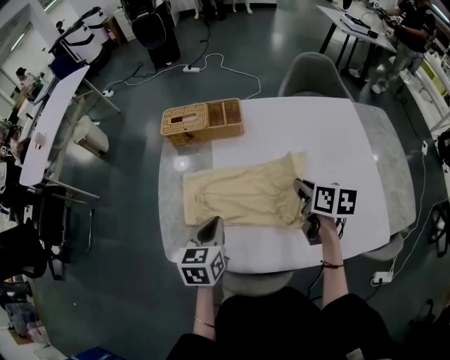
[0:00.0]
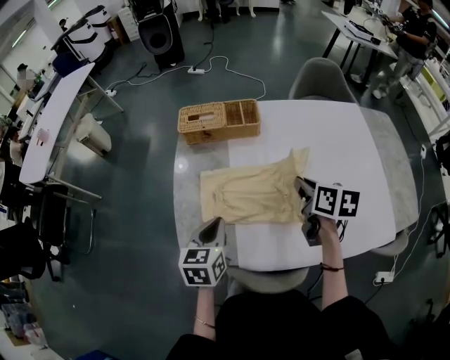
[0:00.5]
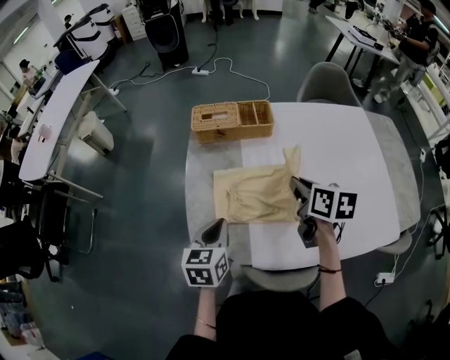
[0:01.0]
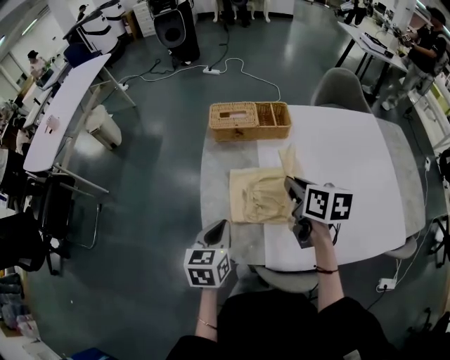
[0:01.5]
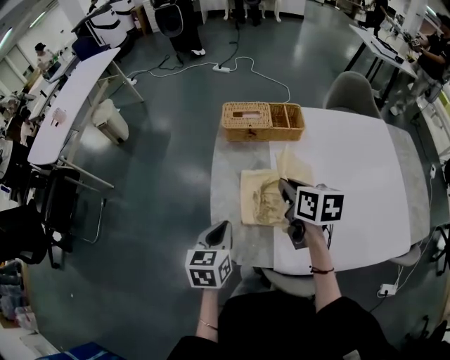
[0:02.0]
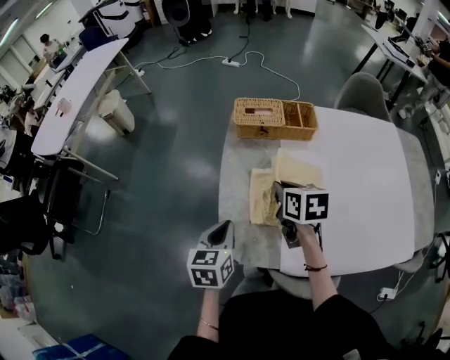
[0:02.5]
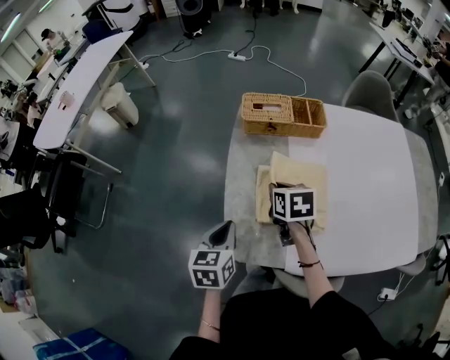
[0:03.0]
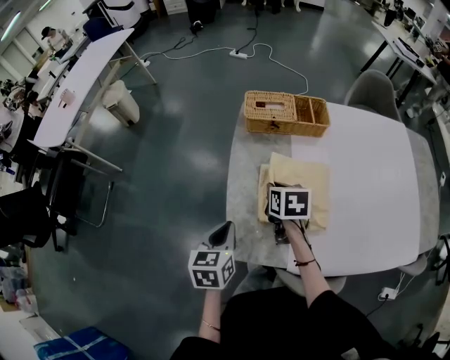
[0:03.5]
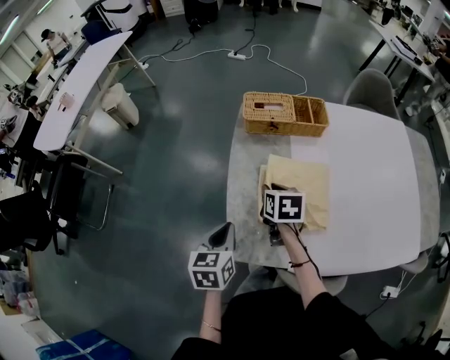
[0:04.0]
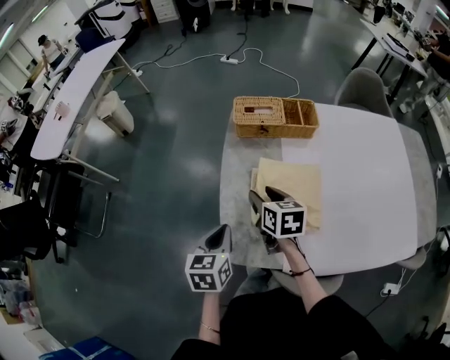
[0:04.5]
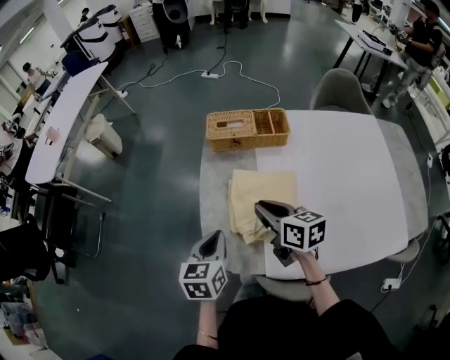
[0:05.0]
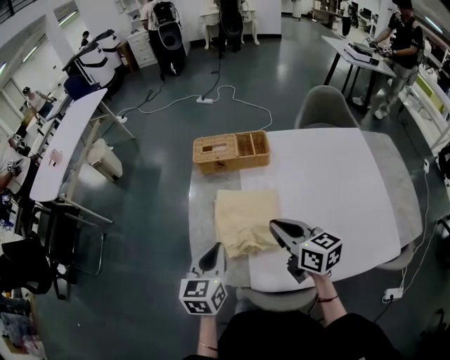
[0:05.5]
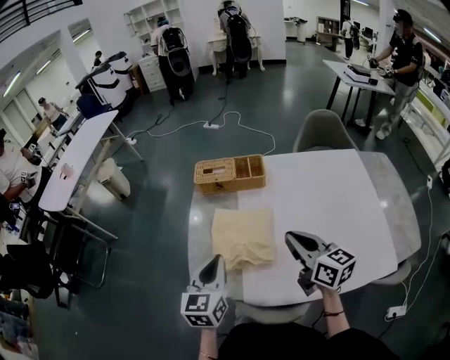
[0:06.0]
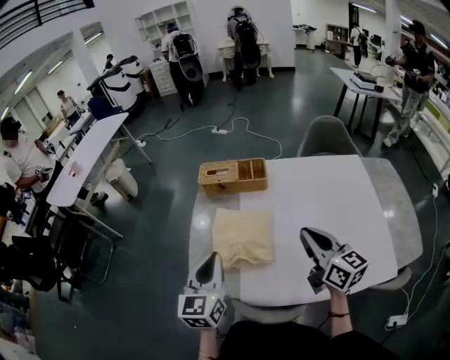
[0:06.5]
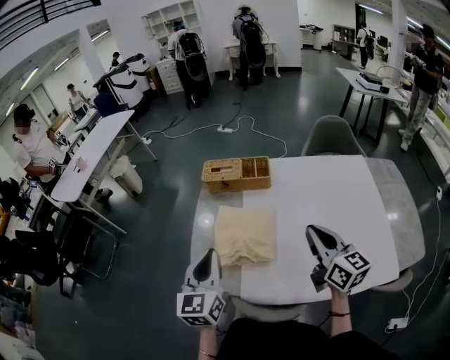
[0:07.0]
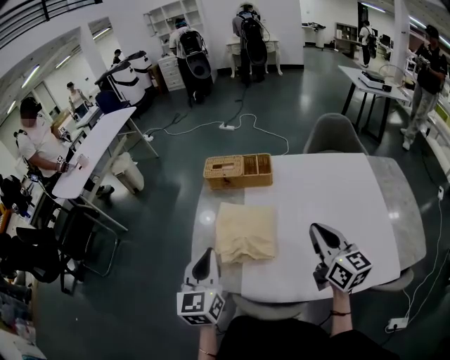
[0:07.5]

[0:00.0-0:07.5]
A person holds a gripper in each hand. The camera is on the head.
0:00.0 to 0:02.0: The two grippers go about 20 cm to the left.
0:02.0 to 0:04.0: The right gripper goes approximately 15 cm downward and to the left. The left gripper ends up approximately 5 cm from where it was.
0:04.0 to 0:05.5: The right gripper shifts roughly 25 cm upward, to the right and backward, tilts its fingers about 30 degrees upward, and opens and closes again. The left gripper moves to the right and upward, about 15 cm.
0:05.5 to 0:07.5: The left gripper heads upward, covering roughly 10 cm, and swivels some 20 degrees; the right gripper goes about 15 cm to the right, upward and backward, and turns by approximately 20 degrees.

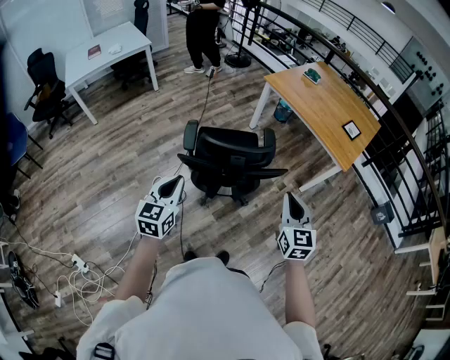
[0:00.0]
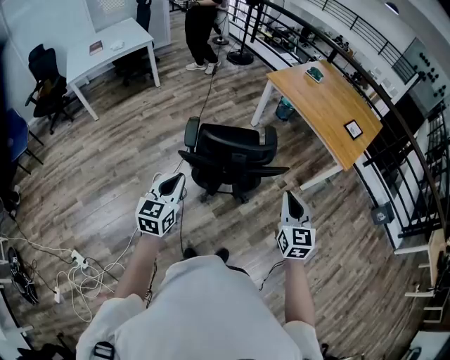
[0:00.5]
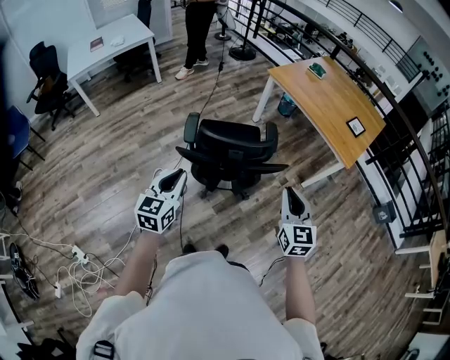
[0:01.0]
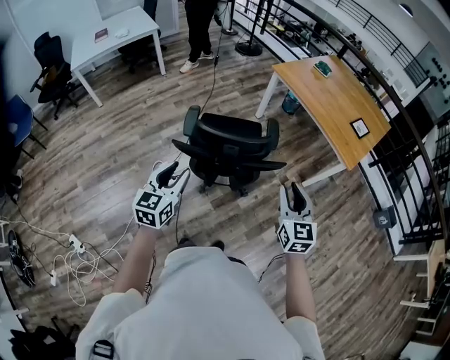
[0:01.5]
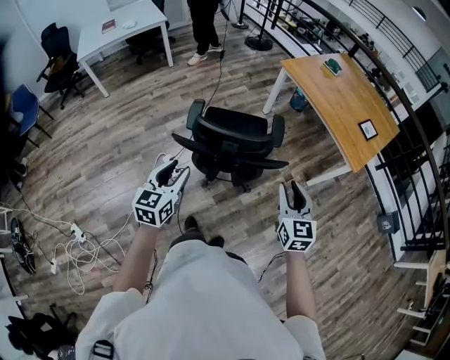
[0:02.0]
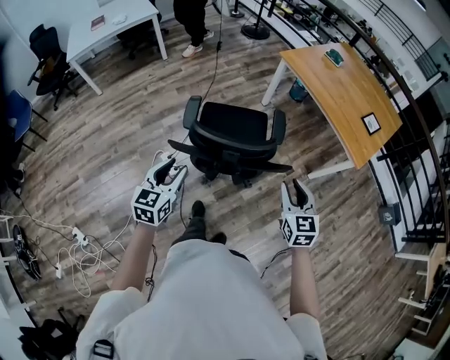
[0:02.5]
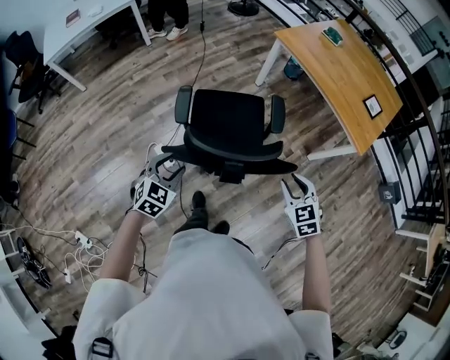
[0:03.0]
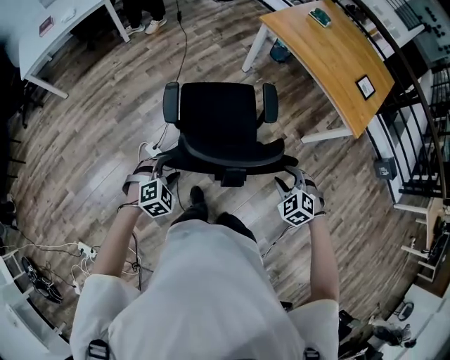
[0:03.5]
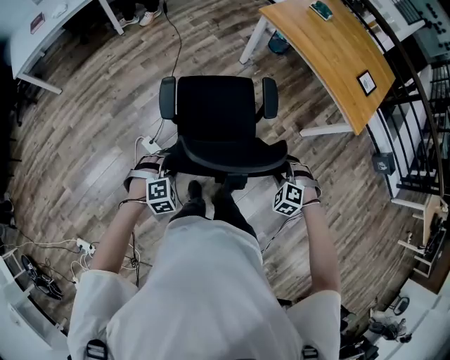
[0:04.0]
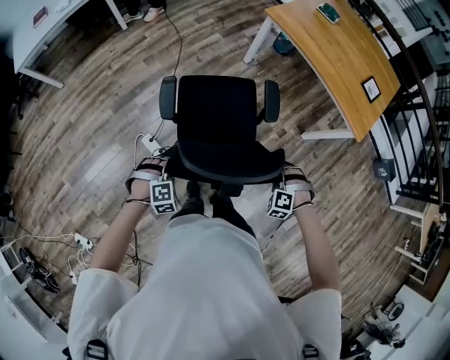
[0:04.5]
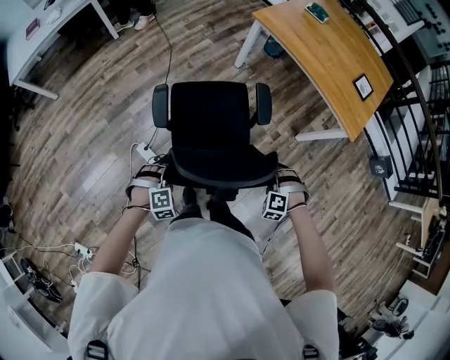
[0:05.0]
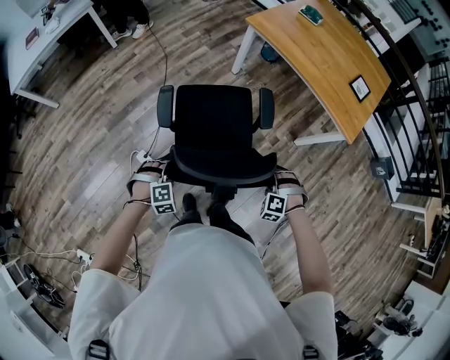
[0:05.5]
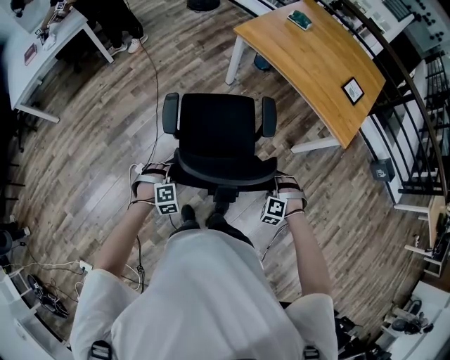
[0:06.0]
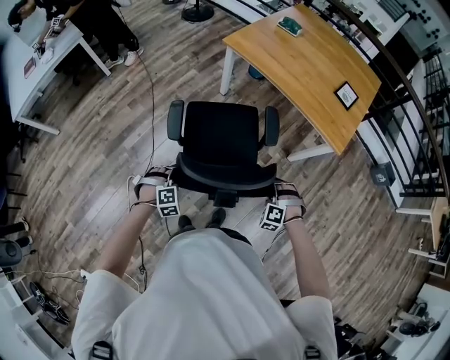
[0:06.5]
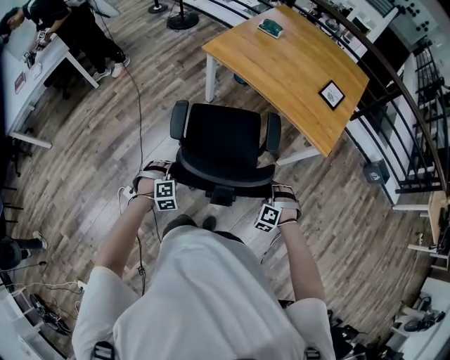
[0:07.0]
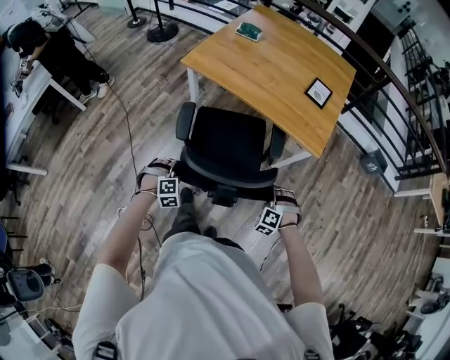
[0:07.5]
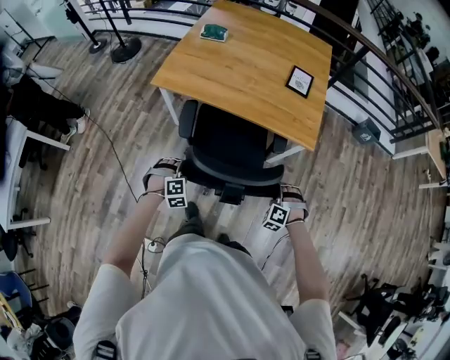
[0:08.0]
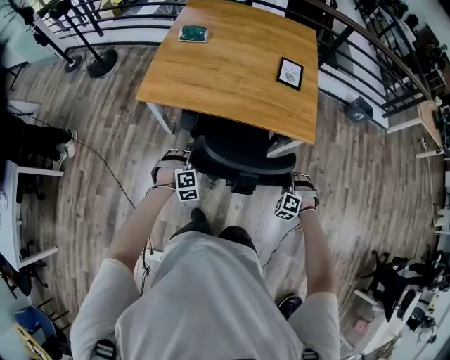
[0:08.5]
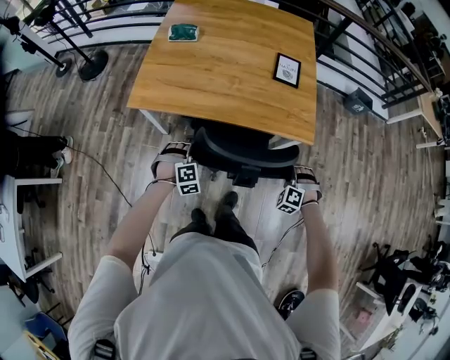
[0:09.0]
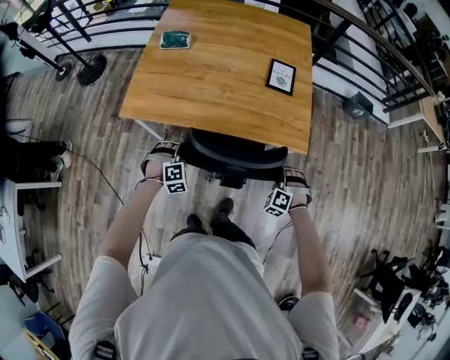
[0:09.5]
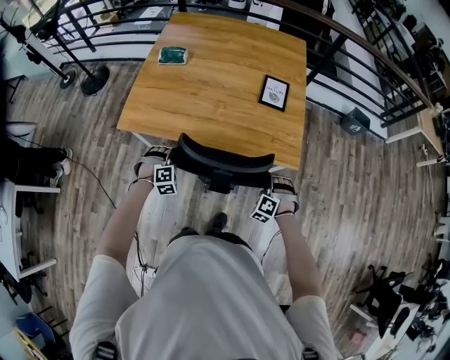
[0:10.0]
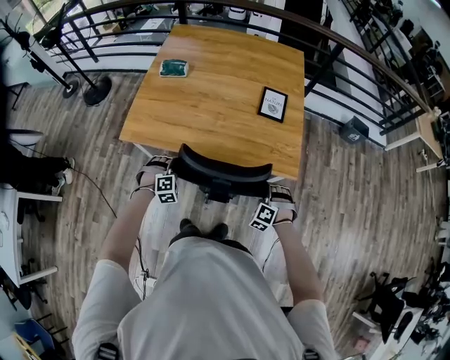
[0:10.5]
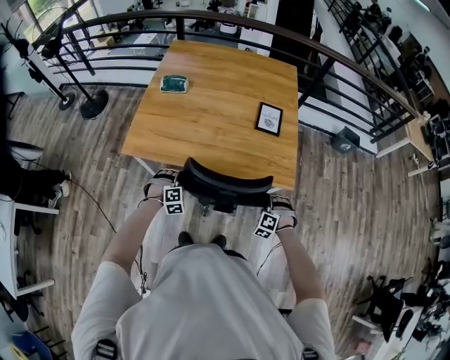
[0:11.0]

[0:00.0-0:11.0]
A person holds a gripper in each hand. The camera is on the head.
0:00.0 to 0:02.0: The left gripper goes roughly 5 cm to the right, and opens its fingers. The right gripper moves forward, about 5 cm, and opens.
0:02.0 to 0:03.5: The two grippers go roughly 20 cm downward and forward. The left gripper tilts its fingers some 40 degrees downward. The right gripper angles its fingers downward, by some 40 degrees.
0:03.5 to 0:05.5: The right gripper travels downward and forward by approximately 10 cm, and changes its angle by approximately 30 degrees. Meanwhile the left gripper travels forward and downward by some 10 cm, rotates roughly 20 degrees, and closes up.
0:05.5 to 0:07.5: The right gripper shifts about 25 cm to the right and forward, and turns by approximately 20 degrees. The left gripper travels forward and to the right by approximately 35 cm.
0:07.5 to 0:09.0: The right gripper is displaced forward by about 20 cm, and turns by approximately 20 degrees. Meanwhile the left gripper moves forward, some 35 cm, and rotates approximately 20 degrees.
0:09.0 to 0:11.0: The two grippers go about 10 cm forward.

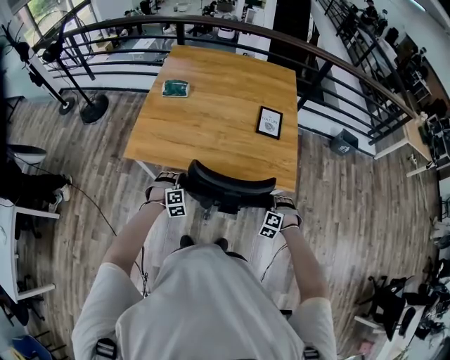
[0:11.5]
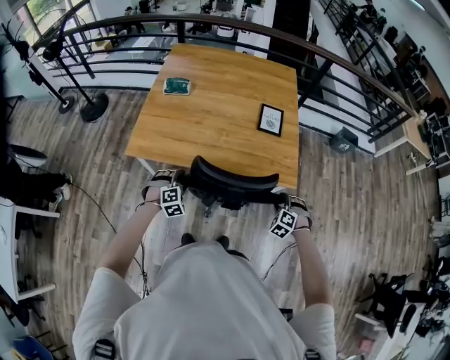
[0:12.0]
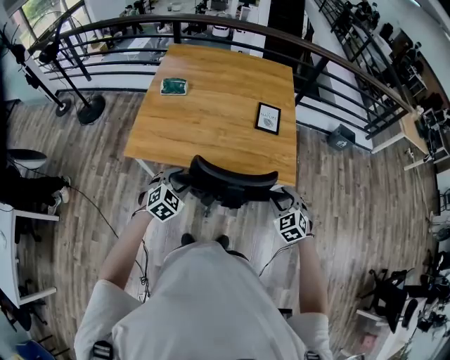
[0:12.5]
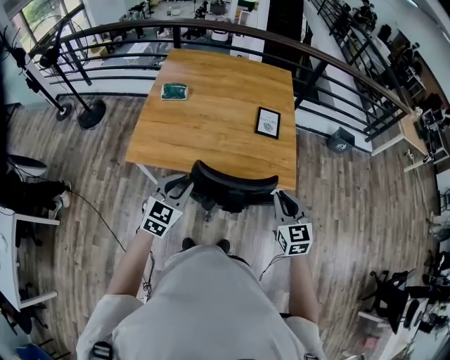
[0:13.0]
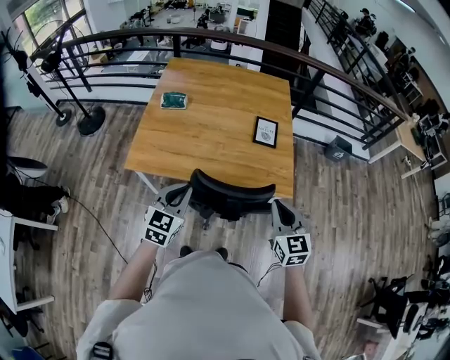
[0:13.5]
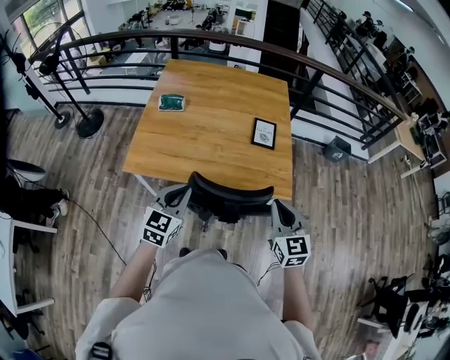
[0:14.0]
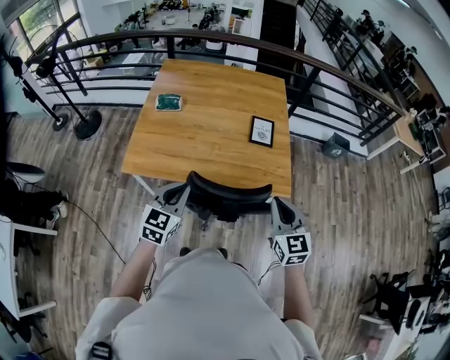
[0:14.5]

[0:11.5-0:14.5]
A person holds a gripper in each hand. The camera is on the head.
0:11.5 to 0:13.0: The two grippers go about 25 cm upward. The right gripper rolls clockwise, seen from behind, by some 60 degrees, and closes up, while the left gripper angles its fingers upward, by roughly 30 degrees, and closes.
0:13.0 to 0:14.5: The grippers move only a little.

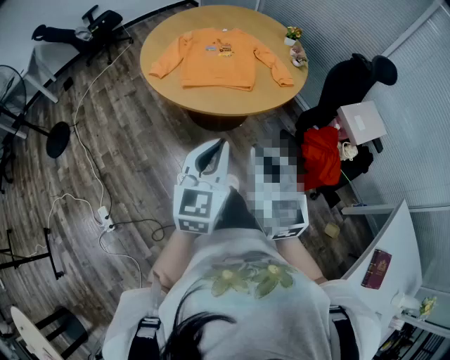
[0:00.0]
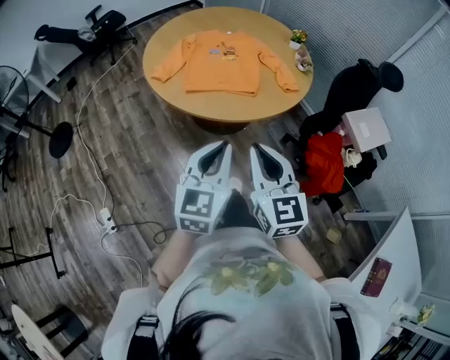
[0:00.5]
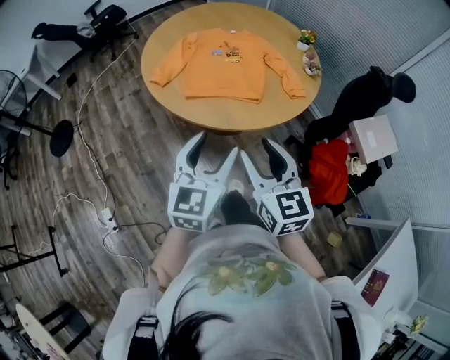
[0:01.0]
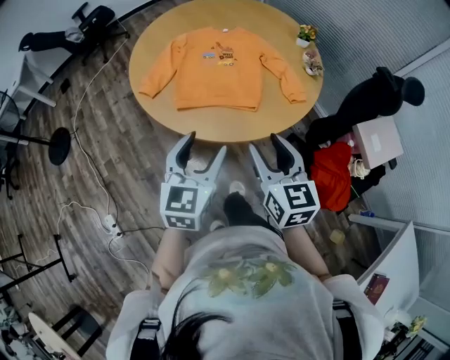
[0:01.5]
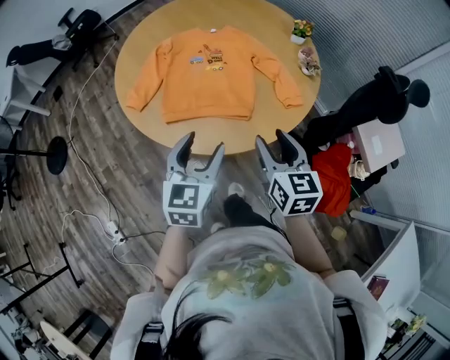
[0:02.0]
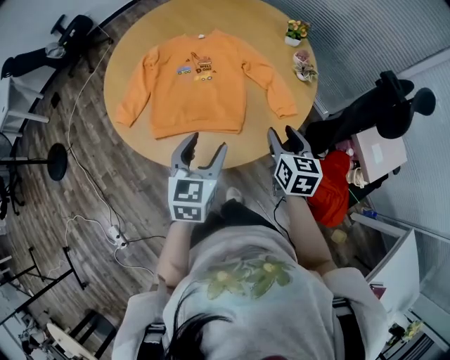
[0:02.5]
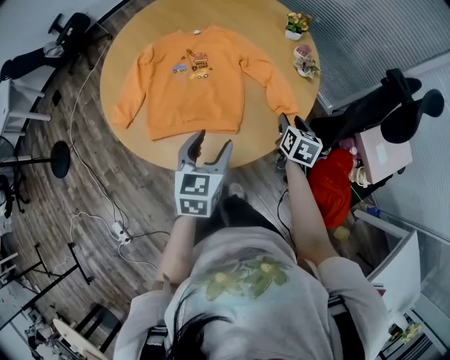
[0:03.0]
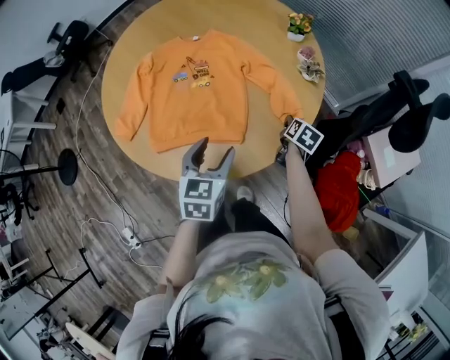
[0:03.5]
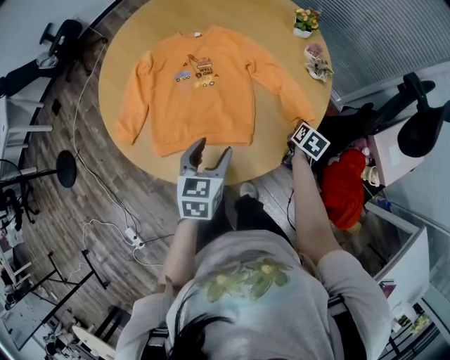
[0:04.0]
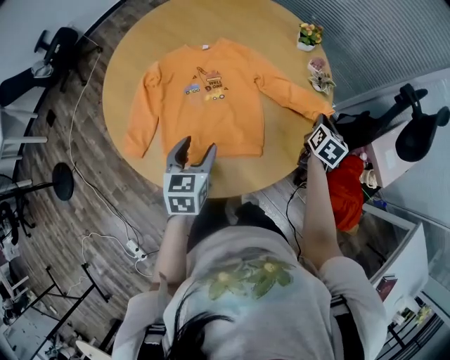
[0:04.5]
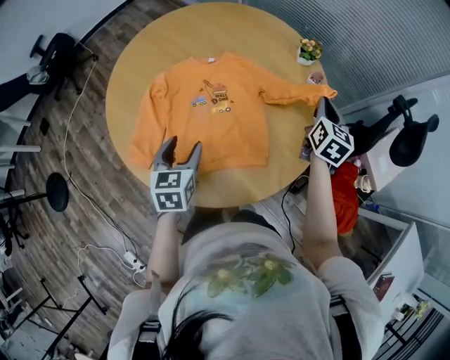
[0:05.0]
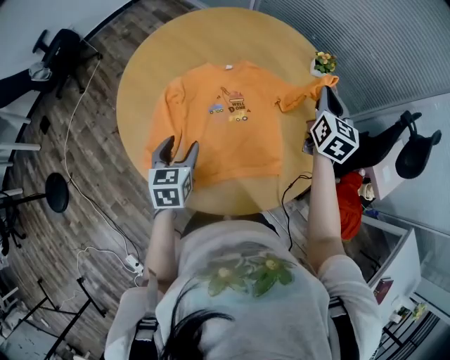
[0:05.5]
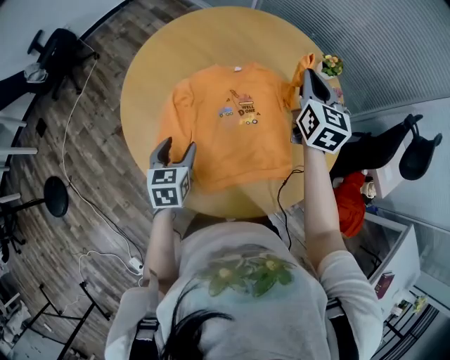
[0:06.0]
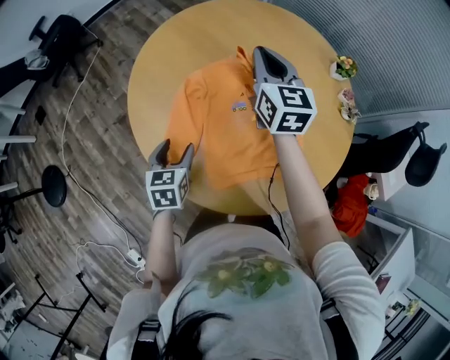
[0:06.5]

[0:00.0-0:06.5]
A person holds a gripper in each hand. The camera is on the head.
0:00.0 to 0:02.0: Both grippers travel together forward, approximately 30 cm. The right gripper opens its fingers, while the left gripper opens.
0:02.0 to 0:04.5: The left gripper moves forward, downward and to the left, approximately 20 cm. Meanwhile the right gripper goes roughly 35 cm forward, to the right and downward, rotates roughly 40 degrees, and closes its fingers.
0:04.5 to 0:06.5: The right gripper goes roughly 50 cm to the left and upward, and rotates about 50 degrees, while the left gripper is displaced to the left by roughly 25 cm.
